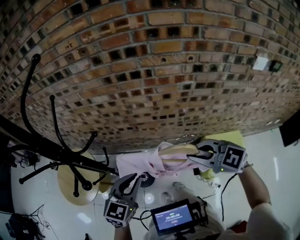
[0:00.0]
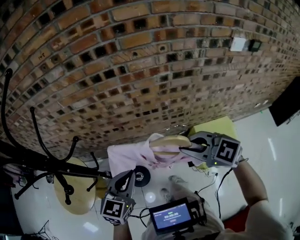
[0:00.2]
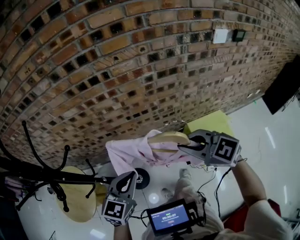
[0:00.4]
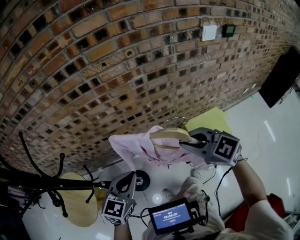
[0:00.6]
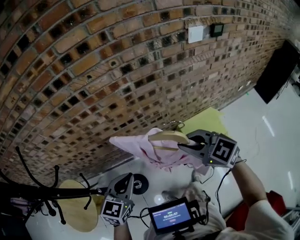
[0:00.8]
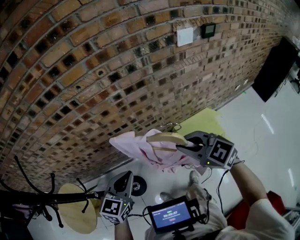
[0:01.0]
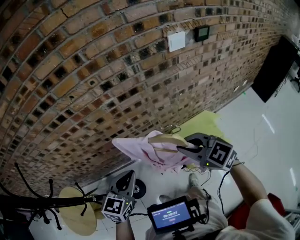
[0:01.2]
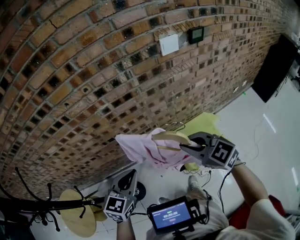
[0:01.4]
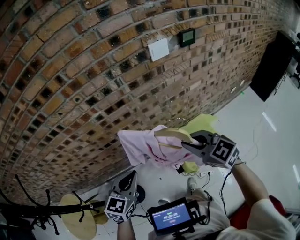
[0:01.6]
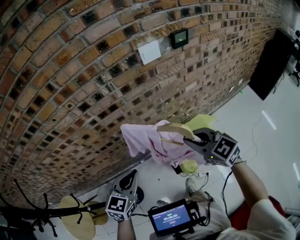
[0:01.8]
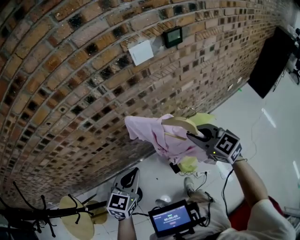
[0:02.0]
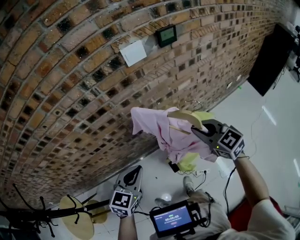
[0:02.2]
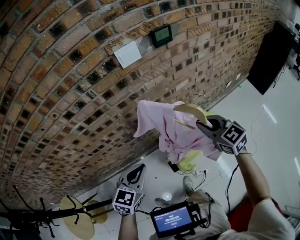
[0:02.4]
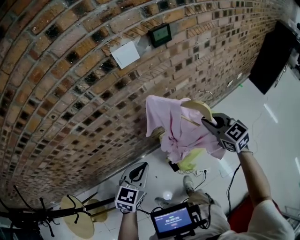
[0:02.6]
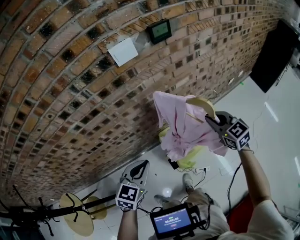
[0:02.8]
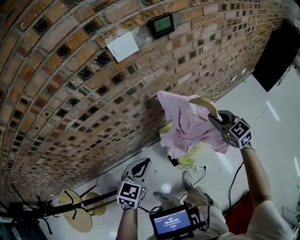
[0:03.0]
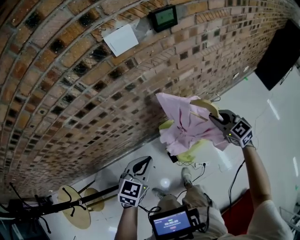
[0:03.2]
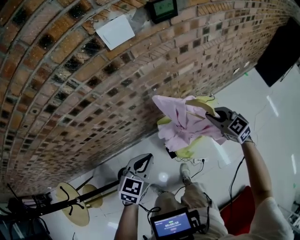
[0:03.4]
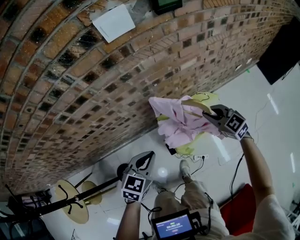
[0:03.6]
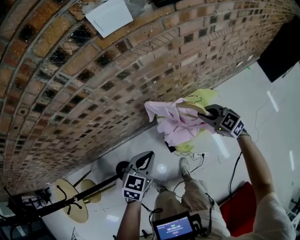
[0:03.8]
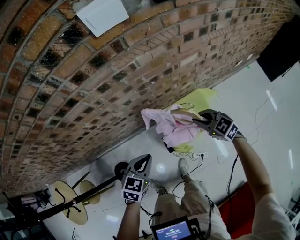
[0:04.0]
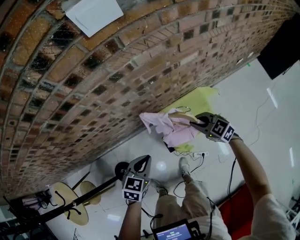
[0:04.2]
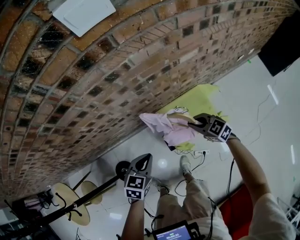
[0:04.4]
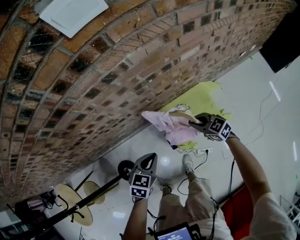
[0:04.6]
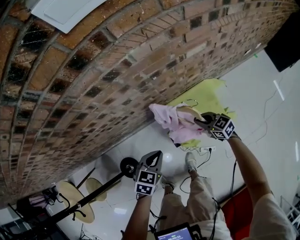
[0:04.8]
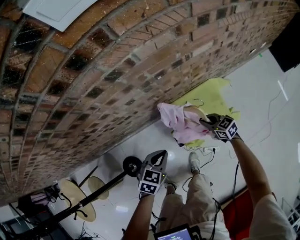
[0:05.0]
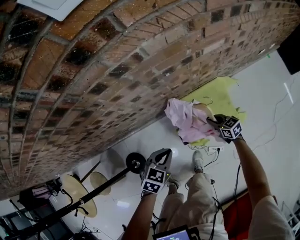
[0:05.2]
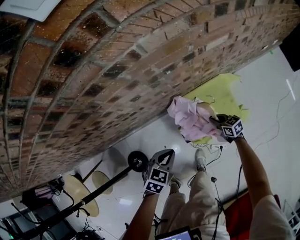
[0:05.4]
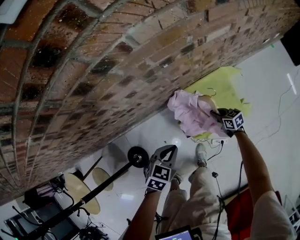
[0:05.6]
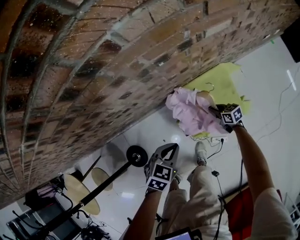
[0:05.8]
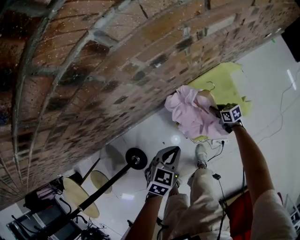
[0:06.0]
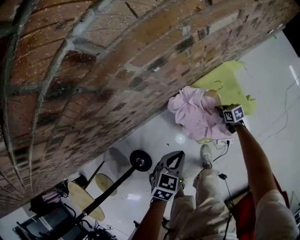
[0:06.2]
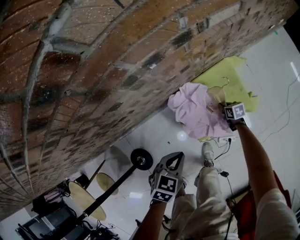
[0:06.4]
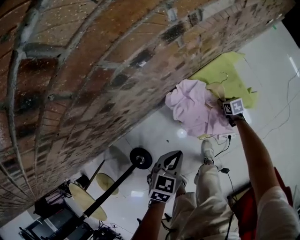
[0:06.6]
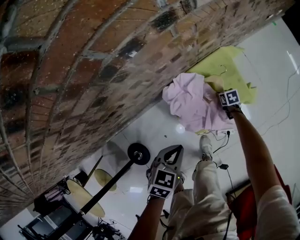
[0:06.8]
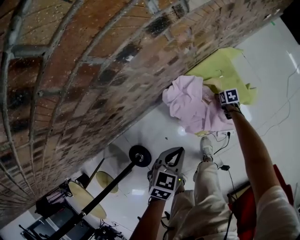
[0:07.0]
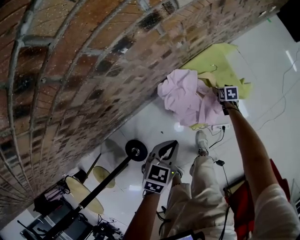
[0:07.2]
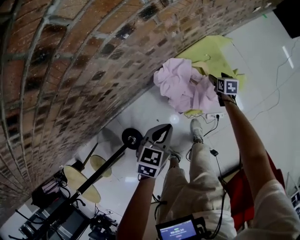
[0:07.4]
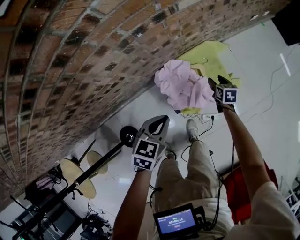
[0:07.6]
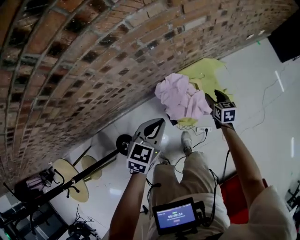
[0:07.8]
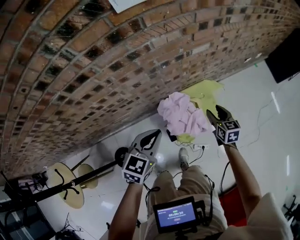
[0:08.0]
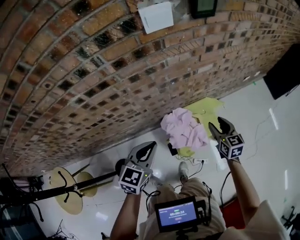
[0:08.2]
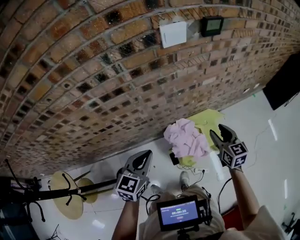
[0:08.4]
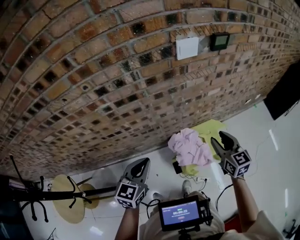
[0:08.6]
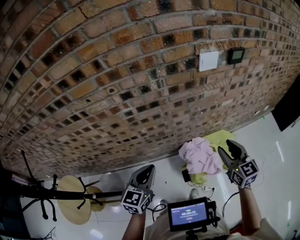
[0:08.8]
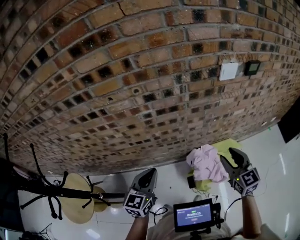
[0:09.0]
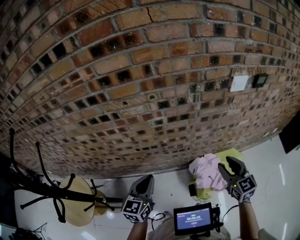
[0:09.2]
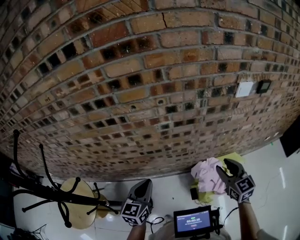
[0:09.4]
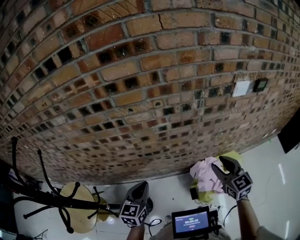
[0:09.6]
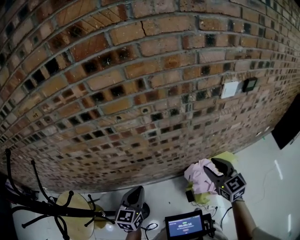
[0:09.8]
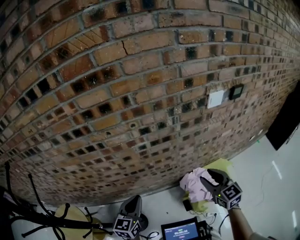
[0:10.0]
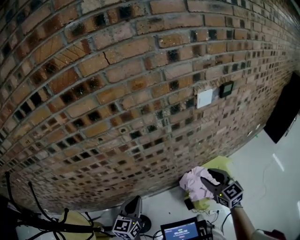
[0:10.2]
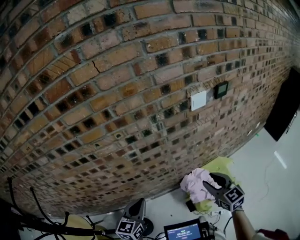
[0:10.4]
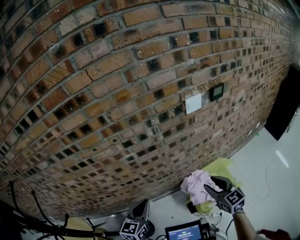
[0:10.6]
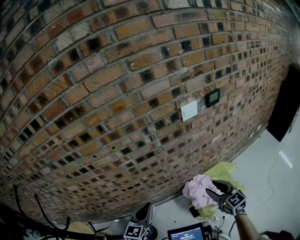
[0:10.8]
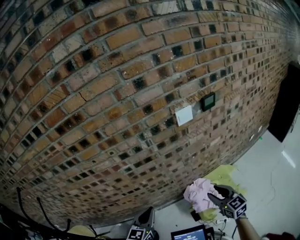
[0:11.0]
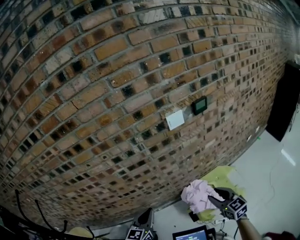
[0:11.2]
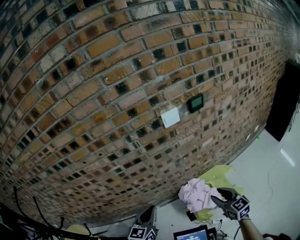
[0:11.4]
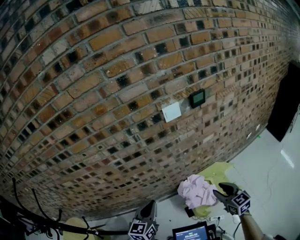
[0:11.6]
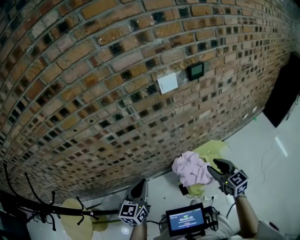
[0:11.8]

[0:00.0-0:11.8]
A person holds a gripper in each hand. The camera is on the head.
0:00.0 to 0:01.4: The left gripper moves roughly 35 cm, and rotates approximately 20 degrees. The right gripper moves some 35 cm, and rotates approximately 30 degrees.
0:01.4 to 0:03.0: The left gripper shifts some 25 cm to the right; the right gripper is displaced to the right and forward by some 40 cm, and changes its angle by some 20 degrees.
0:03.0 to 0:04.4: Both grippers travel together downward, about 25 cm. The right gripper rotates about 30 degrees.
0:04.4 to 0:06.0: The right gripper heads downward, covering about 40 cm, and rolls clockwise, seen from behind, by about 40 degrees; the left gripper heads downward, covering some 20 cm.
0:06.0 to 0:07.4: The left gripper moves approximately 5 cm downward and comes back. Meanwhile the right gripper shifts about 15 cm to the right, goes downward and returns, some 15 cm each way, changes its angle by roughly 40 degrees, and opens its fingers.
0:07.4 to 0:08.8: The left gripper shifts some 60 cm upward, to the left and backward, and angles its fingers upward, by approximately 40 degrees. Meanwhile the right gripper goes about 80 cm upward, tips its fingers upward by some 40 degrees, and closes its fingers.
0:08.8 to 0:10.4: Both grippers travel together to the left, some 10 cm.
0:10.4 to 0:11.8: Both grippers move to the right, approximately 20 cm.

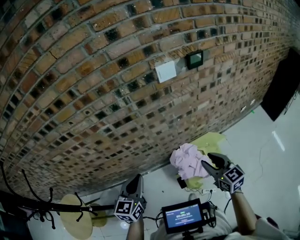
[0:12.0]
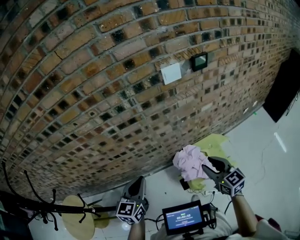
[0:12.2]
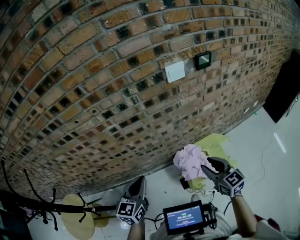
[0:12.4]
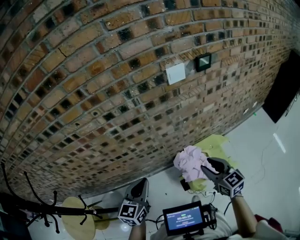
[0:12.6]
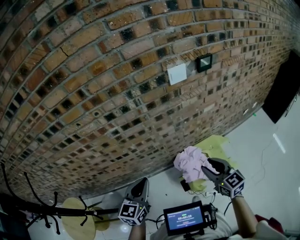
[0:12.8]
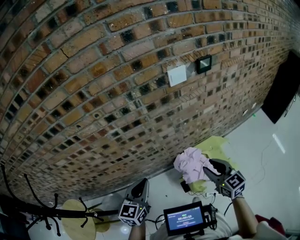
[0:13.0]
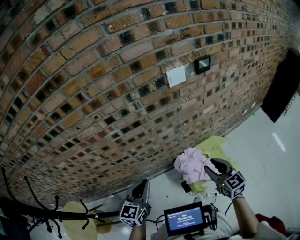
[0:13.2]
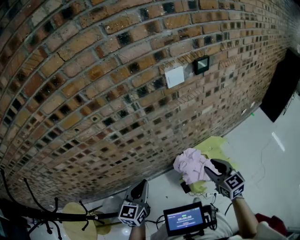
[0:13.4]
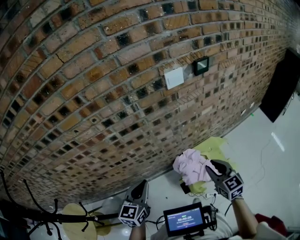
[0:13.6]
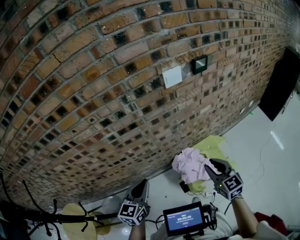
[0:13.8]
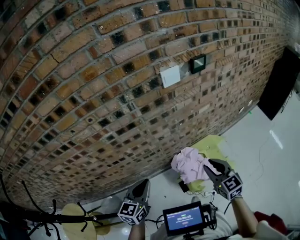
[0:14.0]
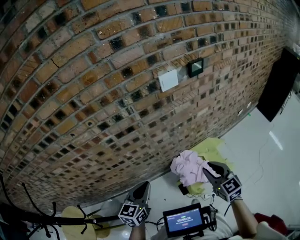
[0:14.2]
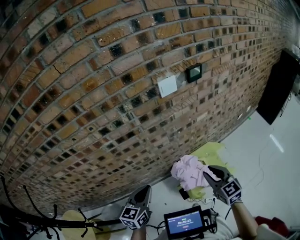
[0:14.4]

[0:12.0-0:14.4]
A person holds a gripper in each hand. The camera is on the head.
0:12.0 to 0:14.4: The grippers stay close to where they were, moving slightly.

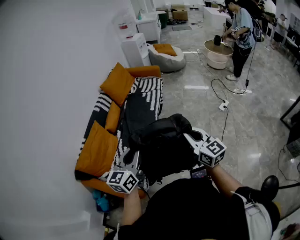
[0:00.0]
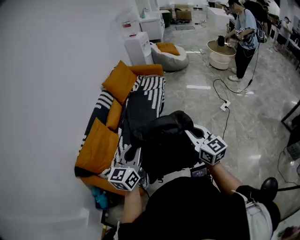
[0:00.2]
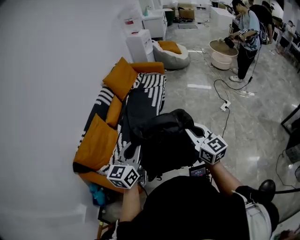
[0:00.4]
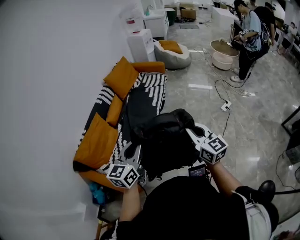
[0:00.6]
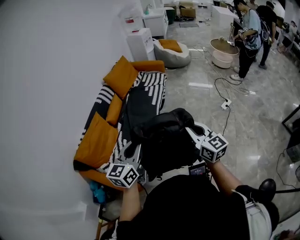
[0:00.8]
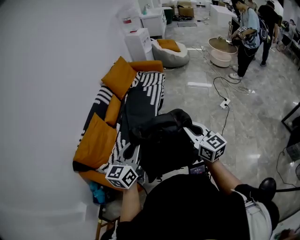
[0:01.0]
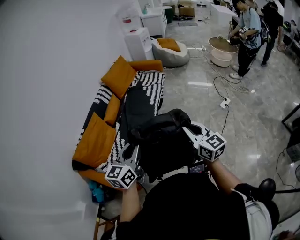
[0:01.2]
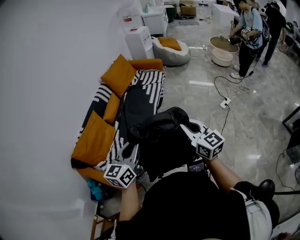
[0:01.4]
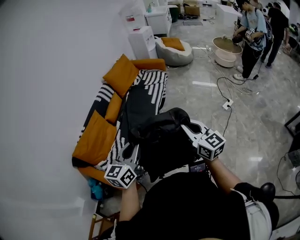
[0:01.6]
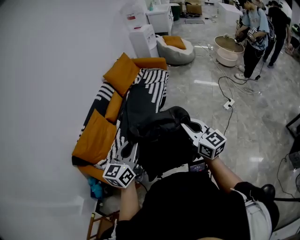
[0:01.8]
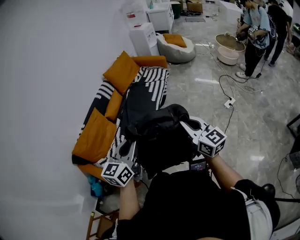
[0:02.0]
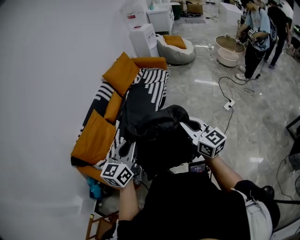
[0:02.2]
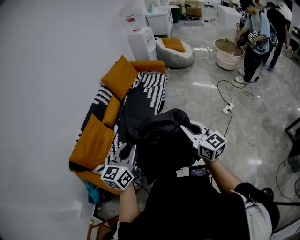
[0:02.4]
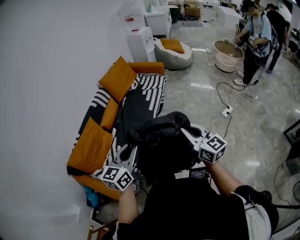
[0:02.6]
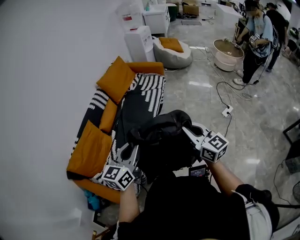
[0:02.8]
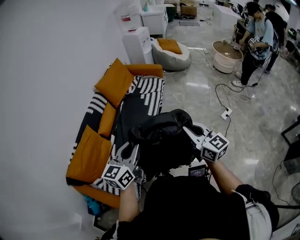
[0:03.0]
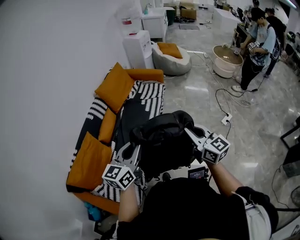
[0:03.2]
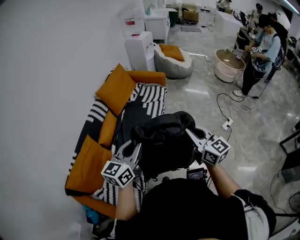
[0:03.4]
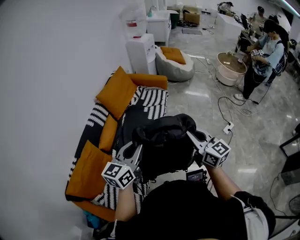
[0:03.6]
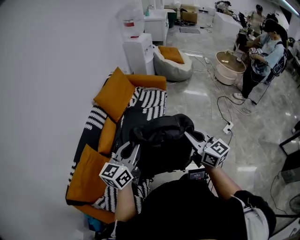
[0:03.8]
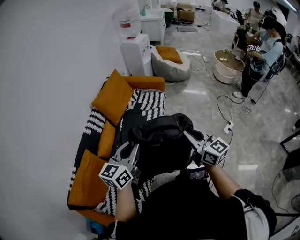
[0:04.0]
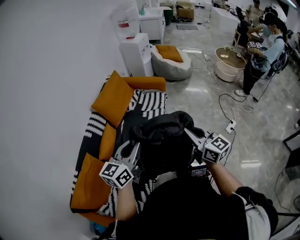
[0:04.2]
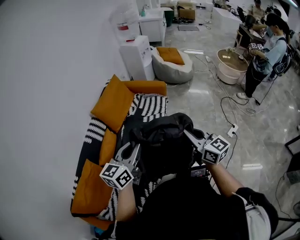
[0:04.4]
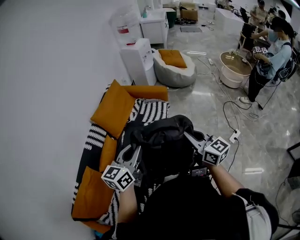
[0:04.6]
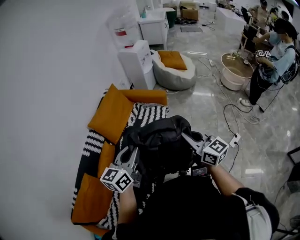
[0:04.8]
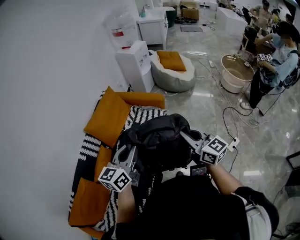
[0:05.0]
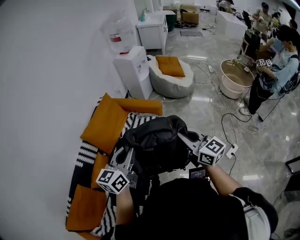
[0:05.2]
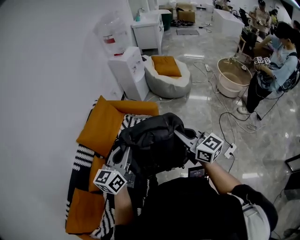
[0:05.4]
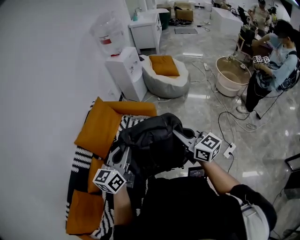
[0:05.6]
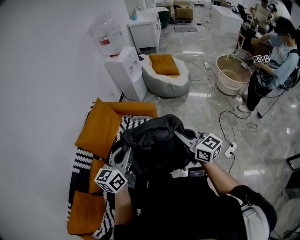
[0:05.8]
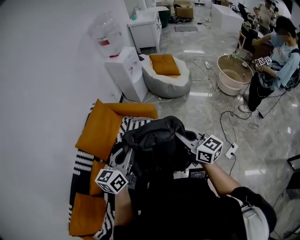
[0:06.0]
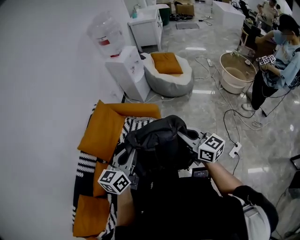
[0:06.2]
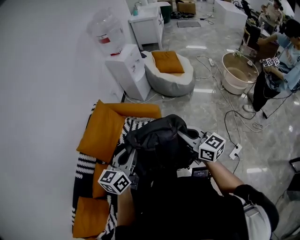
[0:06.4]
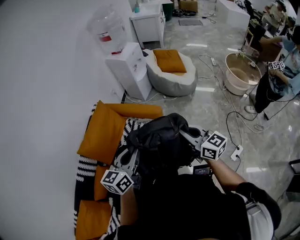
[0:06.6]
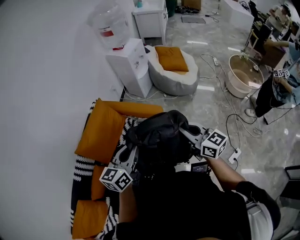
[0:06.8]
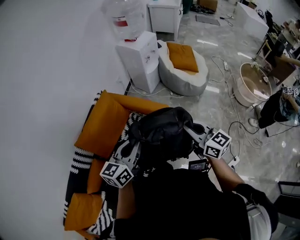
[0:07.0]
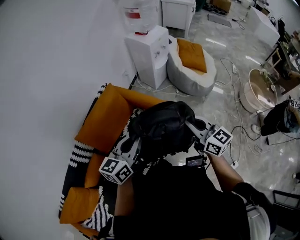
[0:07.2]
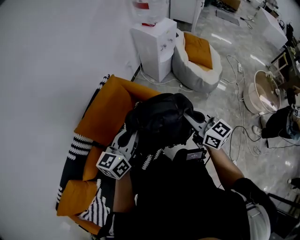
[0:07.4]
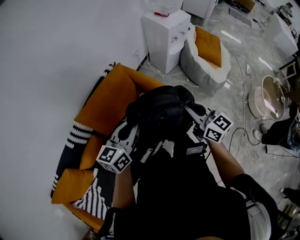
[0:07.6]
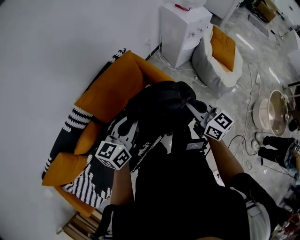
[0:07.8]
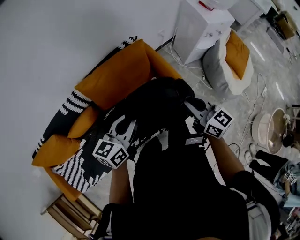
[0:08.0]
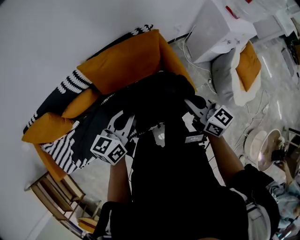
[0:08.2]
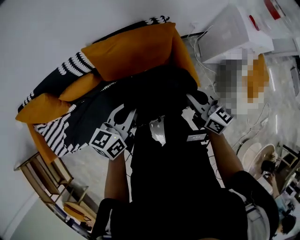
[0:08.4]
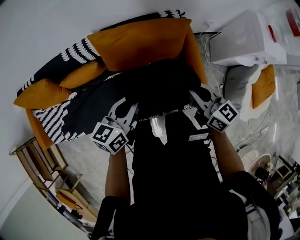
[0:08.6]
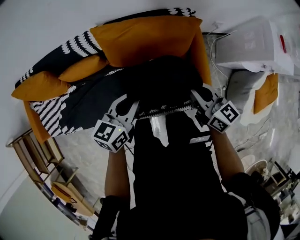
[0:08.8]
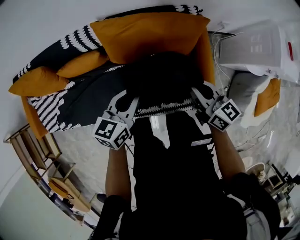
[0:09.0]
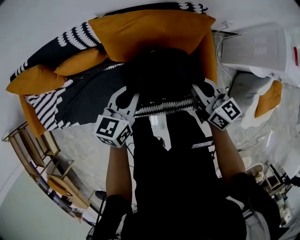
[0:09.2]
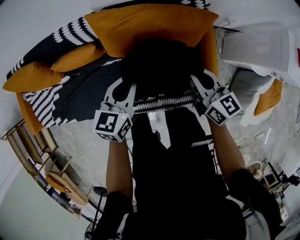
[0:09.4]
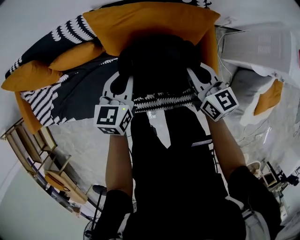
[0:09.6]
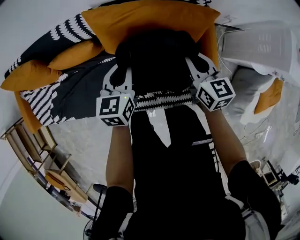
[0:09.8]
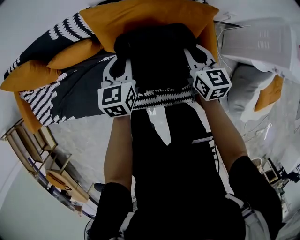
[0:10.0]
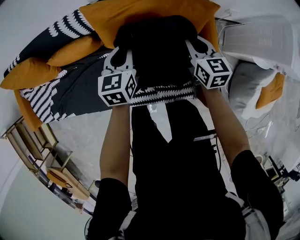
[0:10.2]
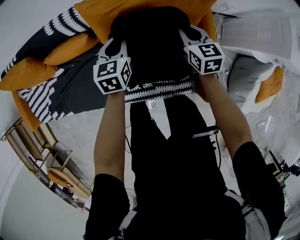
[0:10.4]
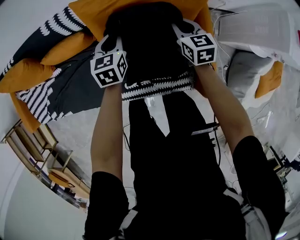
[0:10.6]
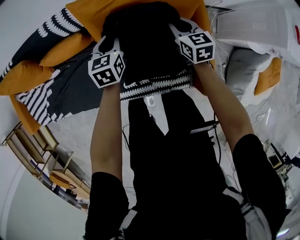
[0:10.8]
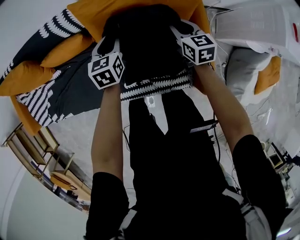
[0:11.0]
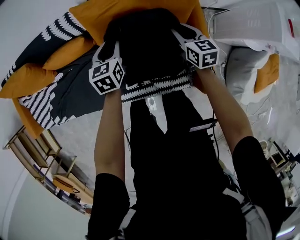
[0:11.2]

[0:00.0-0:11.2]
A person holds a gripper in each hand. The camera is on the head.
0:00.0 to 0:01.6: The two grippers go roughly 5 cm to the right.
0:01.6 to 0:03.2: Both grippers move forward, roughly 20 cm.
0:03.2 to 0:04.8: Both grippers travel together forward, approximately 30 cm.
0:04.8 to 0:06.4: The grippers both shift forward and to the right by about 25 cm.
0:06.4 to 0:08.0: The right gripper shifts by about 40 cm, and swivels approximately 40 degrees; the left gripper shifts by some 25 cm, and changes its angle by some 40 degrees.
0:08.0 to 0:09.6: The left gripper travels downward by roughly 15 cm, and turns by approximately 40 degrees. Meanwhile the right gripper shifts by some 30 cm, and swivels approximately 20 degrees.
0:09.6 to 0:11.2: The two grippers go roughly 10 cm downward. The left gripper opens its fingers.
